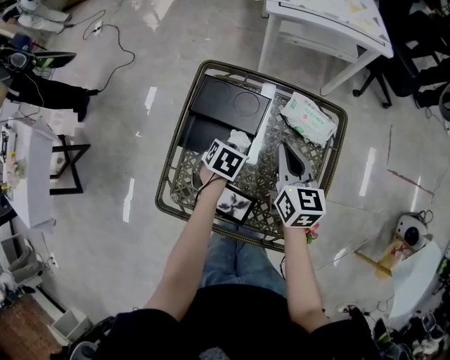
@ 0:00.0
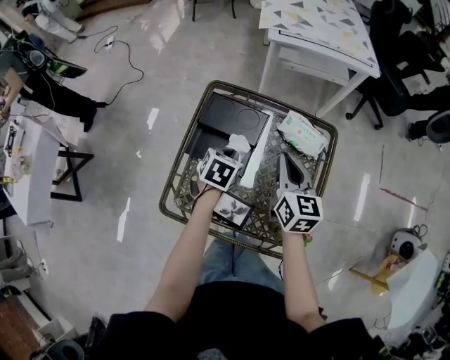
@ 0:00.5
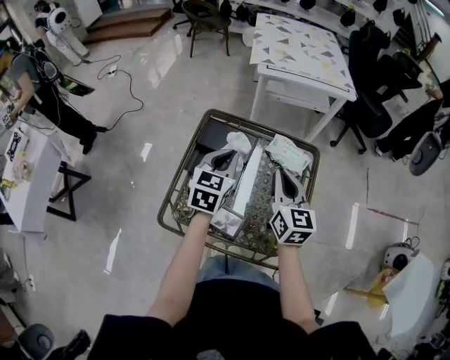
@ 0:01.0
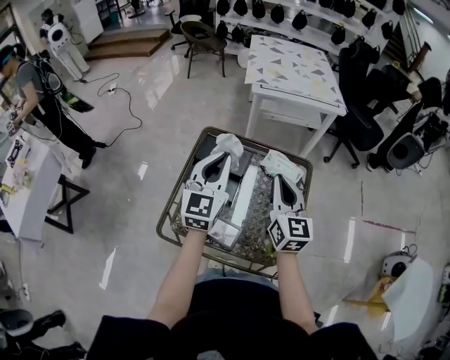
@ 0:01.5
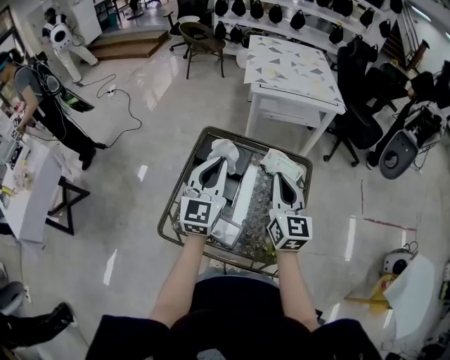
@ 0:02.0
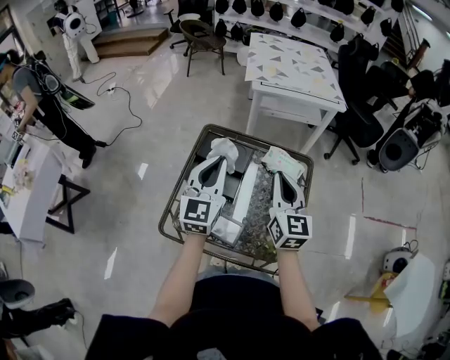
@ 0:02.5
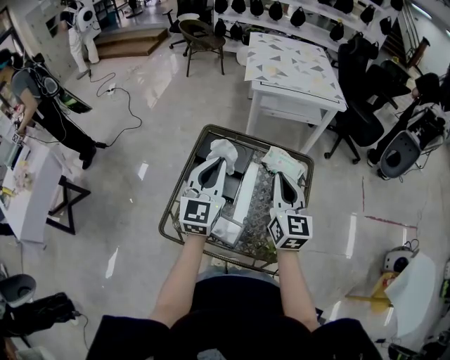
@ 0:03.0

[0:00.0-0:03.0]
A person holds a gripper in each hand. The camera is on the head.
0:00.0 to 0:01.5: The right gripper moves upward and backward, about 20 cm, and rotates about 20 degrees. Meanwhile the left gripper moves upward, approximately 35 cm, and tips its fingers upward by some 70 degrees.
0:01.5 to 0:03.0: The grippers stay close to where they were, moving slightly.

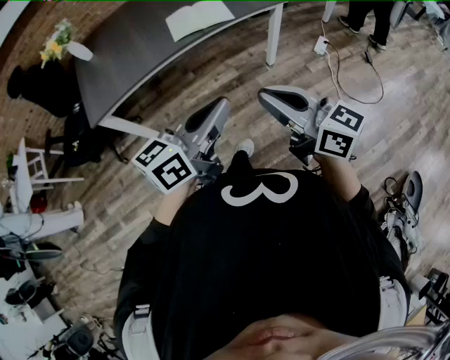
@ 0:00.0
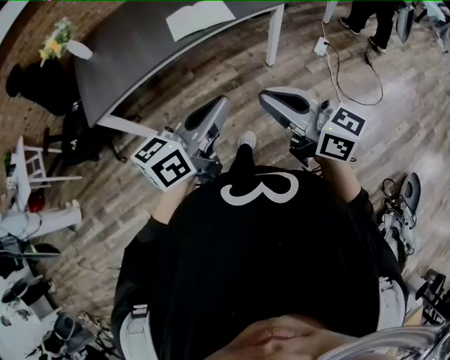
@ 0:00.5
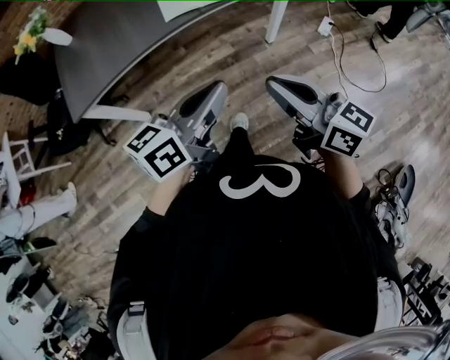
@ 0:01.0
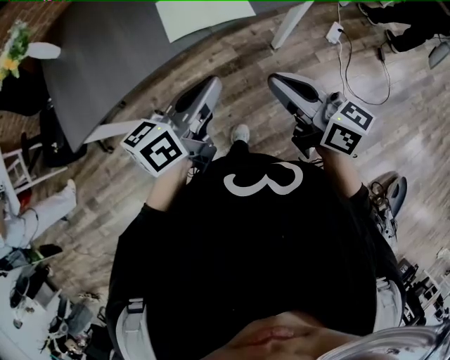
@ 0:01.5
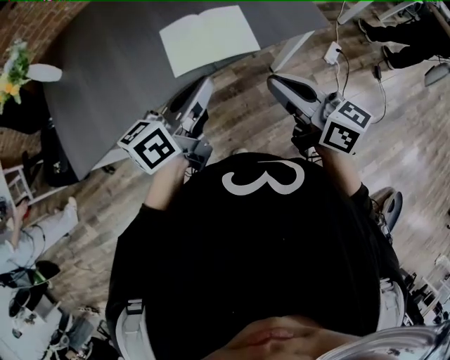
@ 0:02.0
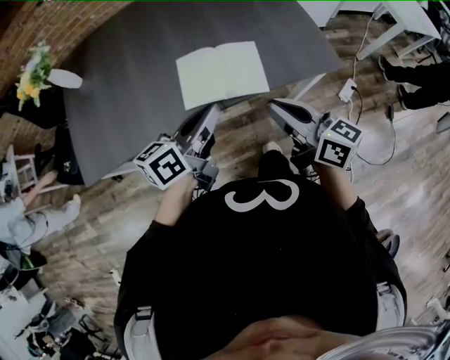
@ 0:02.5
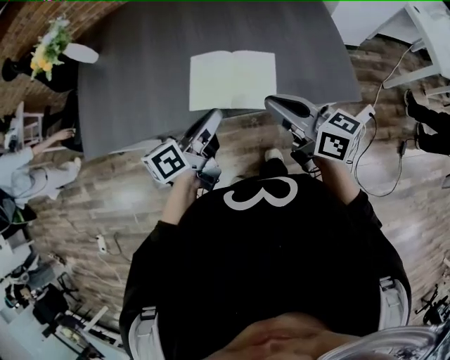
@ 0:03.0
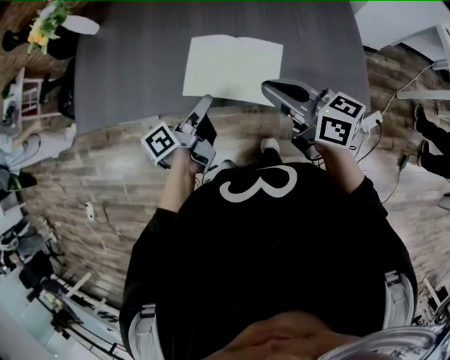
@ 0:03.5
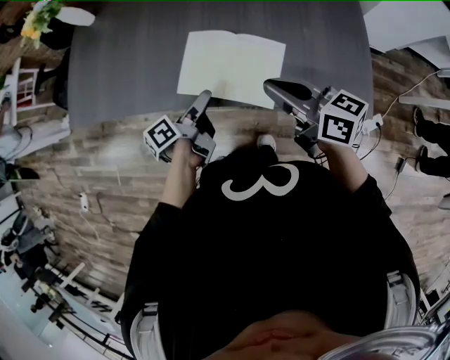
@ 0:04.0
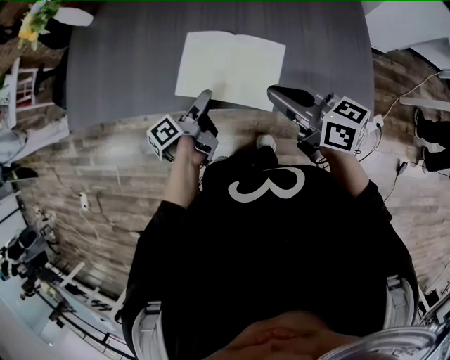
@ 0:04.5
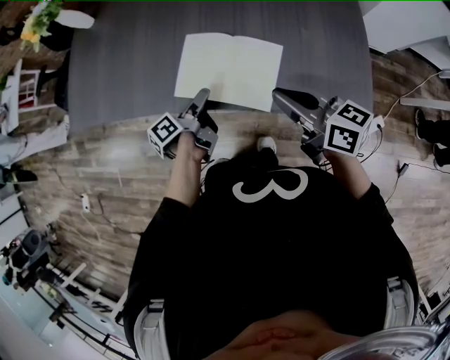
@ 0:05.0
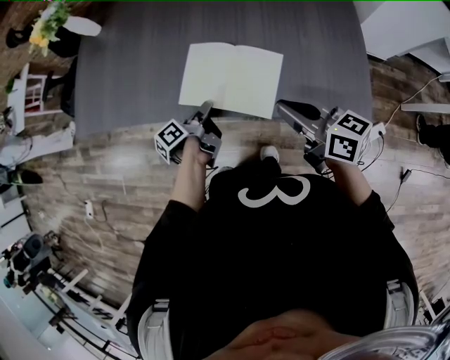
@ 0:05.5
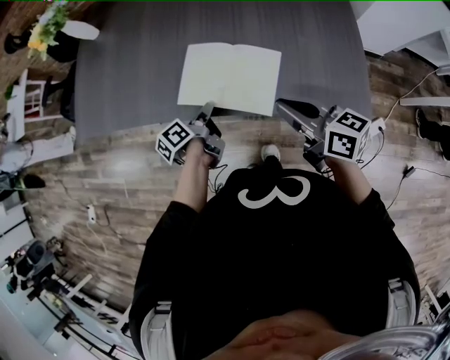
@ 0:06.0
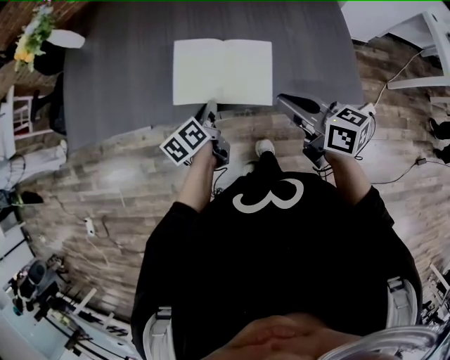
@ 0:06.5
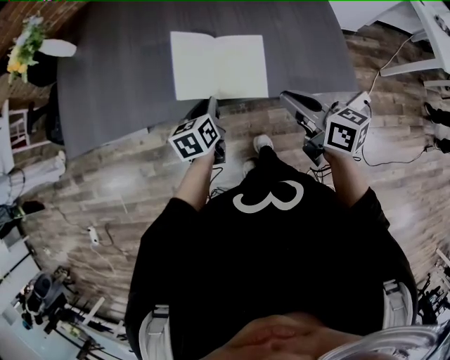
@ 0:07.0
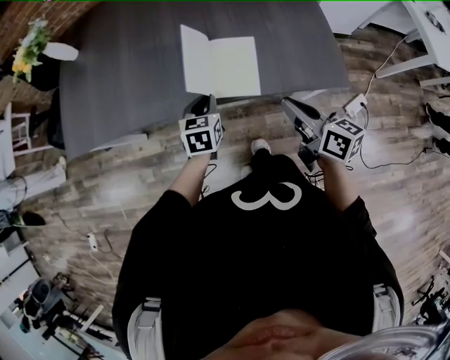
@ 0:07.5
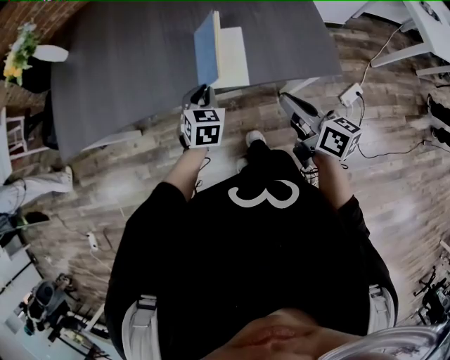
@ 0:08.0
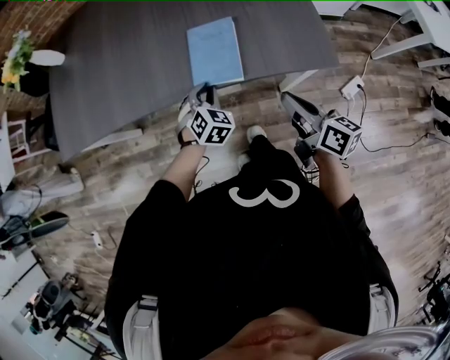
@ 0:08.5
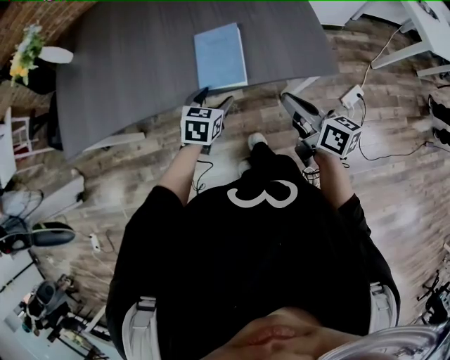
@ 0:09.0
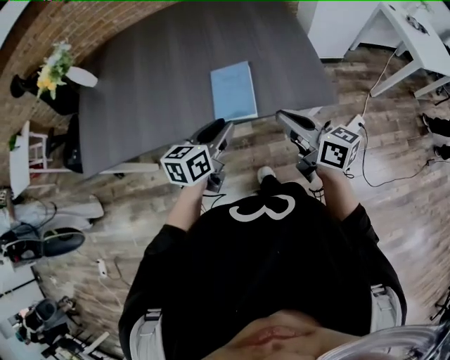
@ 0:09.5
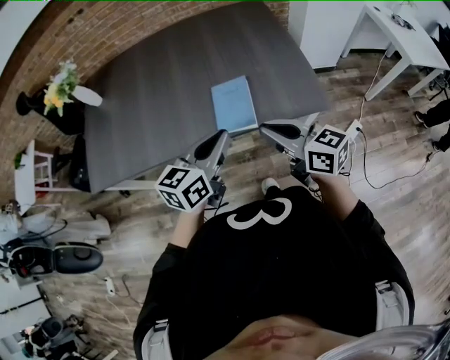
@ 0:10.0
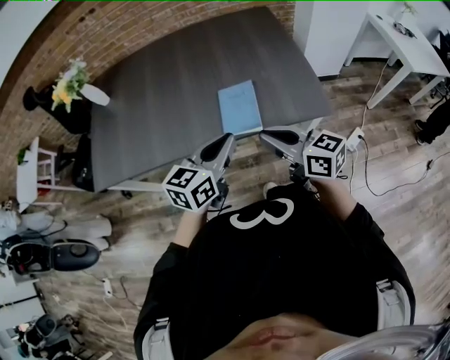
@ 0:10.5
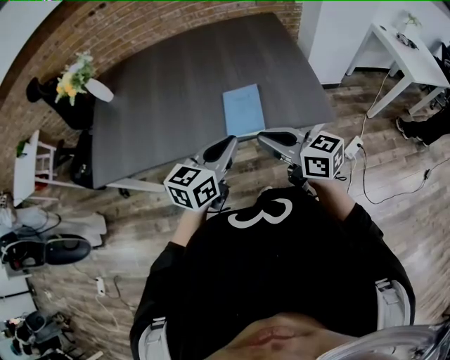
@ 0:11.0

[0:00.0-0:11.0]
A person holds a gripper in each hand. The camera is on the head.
0:00.0 to 0:02.0: The grippers both shift forward by approximately 35 cm.
0:02.0 to 0:03.5: The left gripper shifts by about 15 cm, changes its angle by roughly 50 degrees, and opens, while the right gripper ends up approximately 20 cm from where it was, and rotates approximately 30 degrees.
0:03.5 to 0:05.5: The left gripper is displaced downward by approximately 10 cm, turns by some 20 degrees, and opens and closes again; the right gripper shifts by roughly 5 cm.
0:05.5 to 0:07.5: The right gripper shifts approximately 10 cm backward, and turns by roughly 20 degrees; the left gripper heads to the right, covering approximately 5 cm, and rolls clockwise, seen from behind, by roughly 80 degrees.
0:07.5 to 0:09.0: The left gripper shifts roughly 5 cm to the right, and opens its fingers.
0:09.0 to 0:11.0: The right gripper goes approximately 15 cm to the left and upward, and changes its angle by roughly 30 degrees; the left gripper heads upward, covering approximately 20 cm, points its fingers roughly 30 degrees further upward, and closes up.

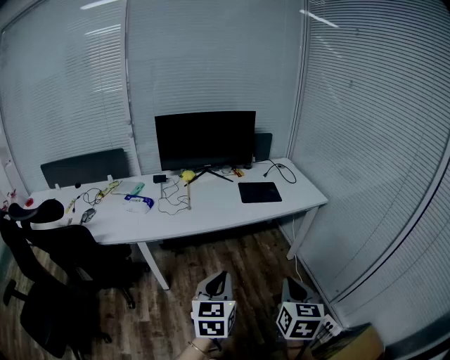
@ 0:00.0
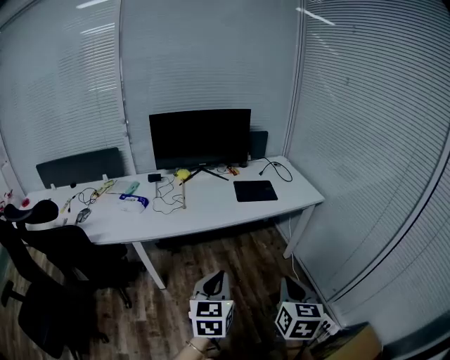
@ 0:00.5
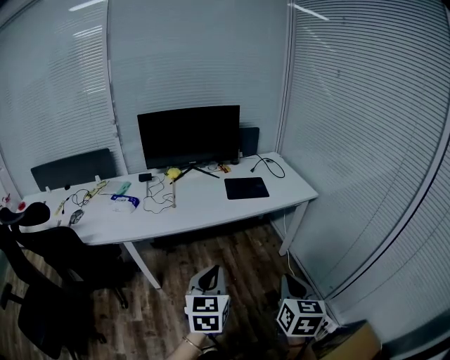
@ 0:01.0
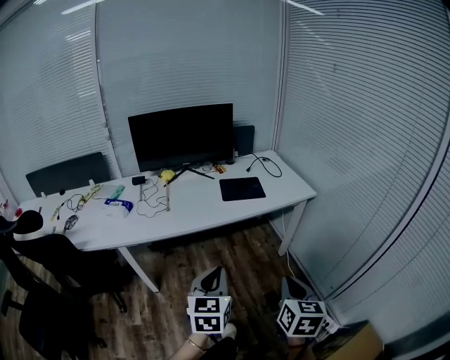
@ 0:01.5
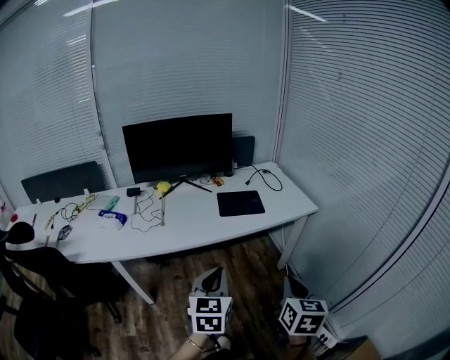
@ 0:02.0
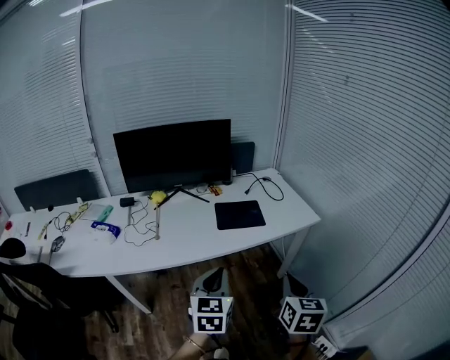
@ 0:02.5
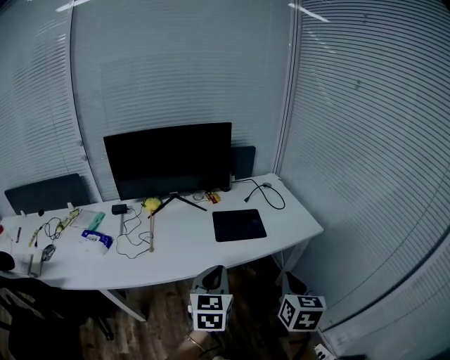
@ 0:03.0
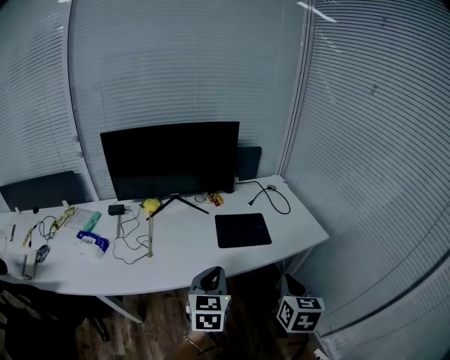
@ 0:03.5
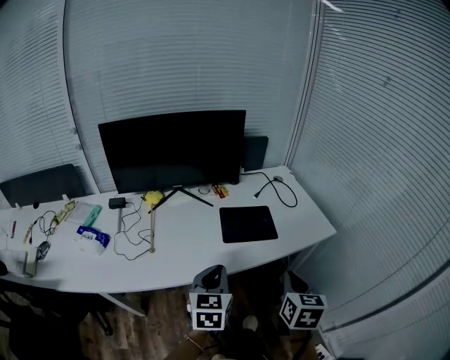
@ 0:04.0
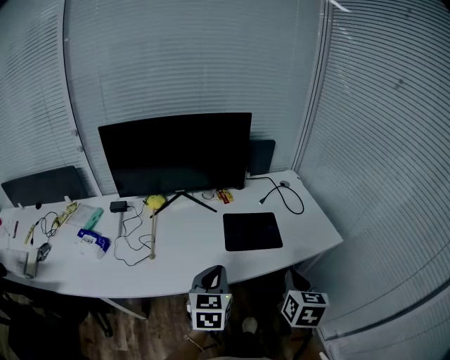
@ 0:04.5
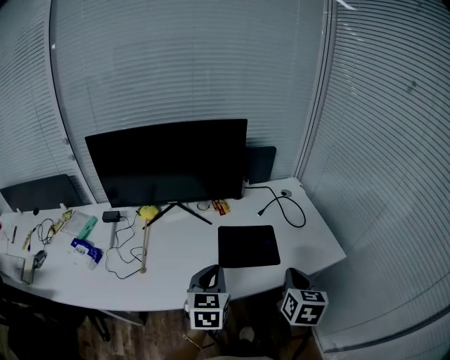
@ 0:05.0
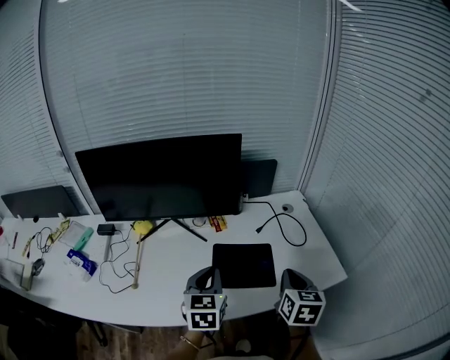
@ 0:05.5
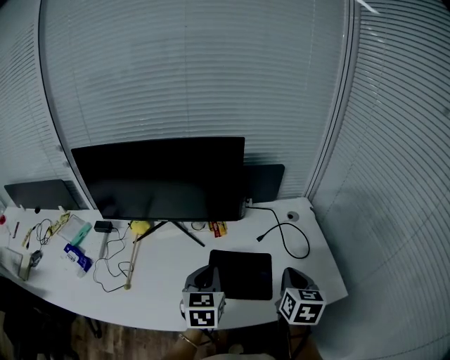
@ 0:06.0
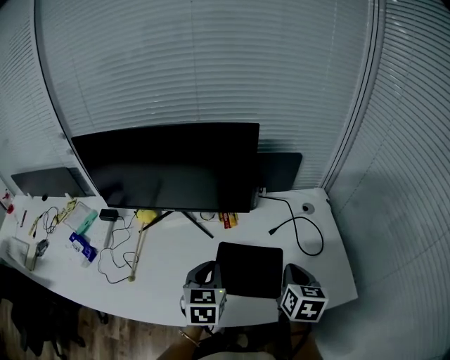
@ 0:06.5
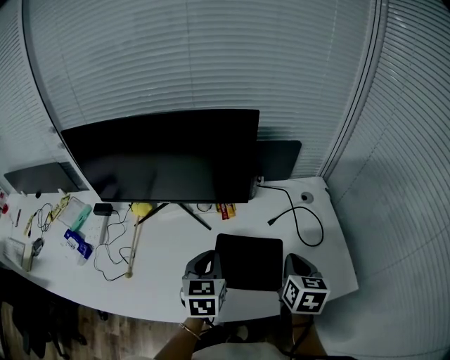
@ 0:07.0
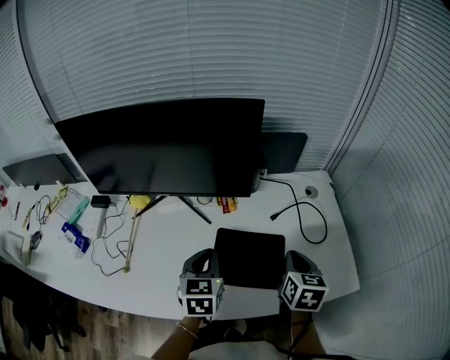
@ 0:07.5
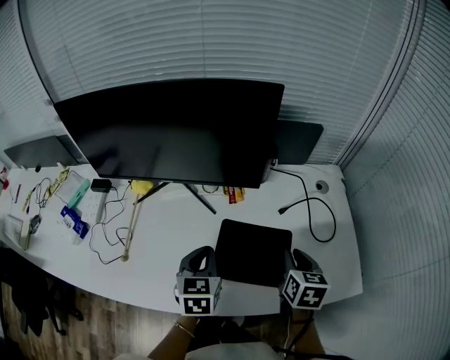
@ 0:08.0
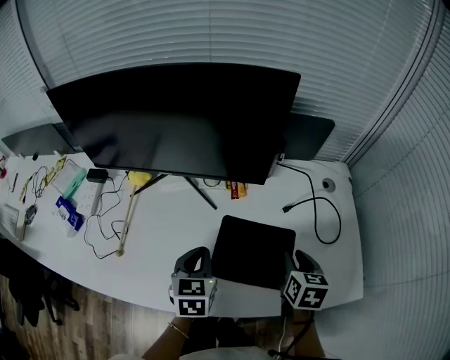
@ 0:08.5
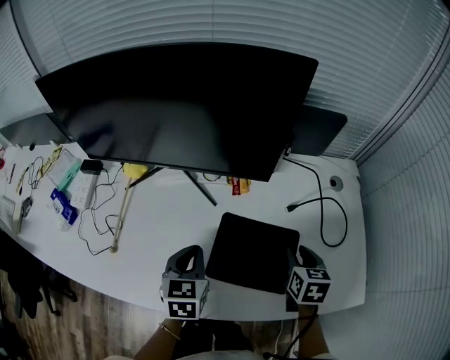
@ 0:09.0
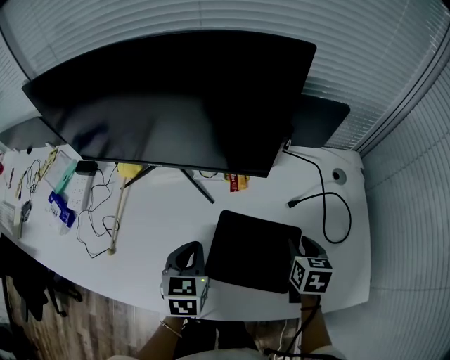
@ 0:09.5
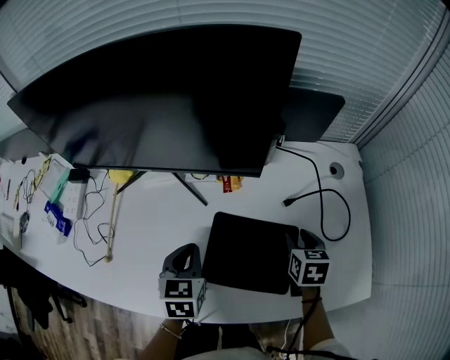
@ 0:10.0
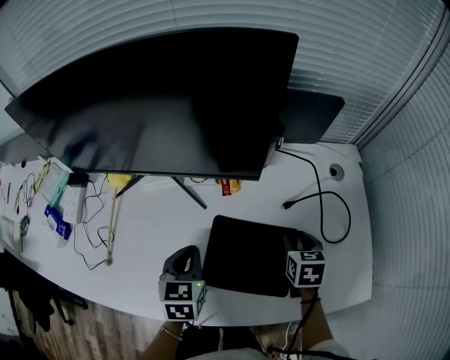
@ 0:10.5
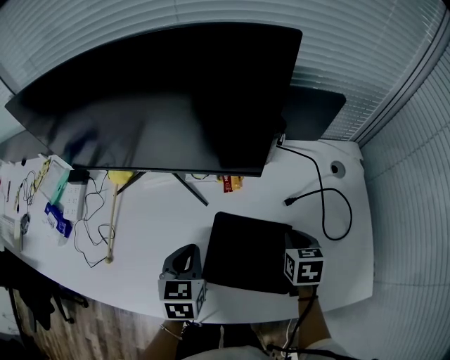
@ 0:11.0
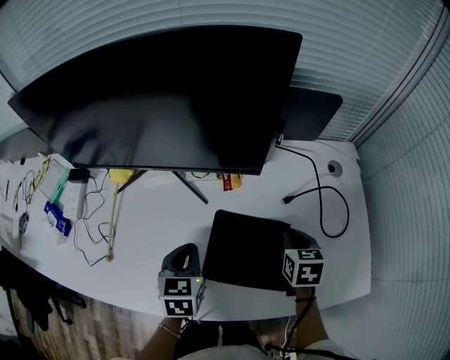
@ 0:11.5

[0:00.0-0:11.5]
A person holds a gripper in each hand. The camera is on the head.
0:00.0 to 0:02.0: The grippers both shift forward and to the right by some 15 cm.
0:02.0 to 0:04.0: Both grippers move forward, roughly 20 cm.
0:04.0 to 0:06.0: Both grippers move forward, approximately 25 cm.
0:06.0 to 0:07.5: The grippers both shift downward by approximately 5 cm.
0:07.5 to 0:09.5: The right gripper heads downward and forward, covering approximately 15 cm, and opens up; the left gripper moves downward, about 10 cm.
0:09.5 to 0:11.5: The right gripper closes up.

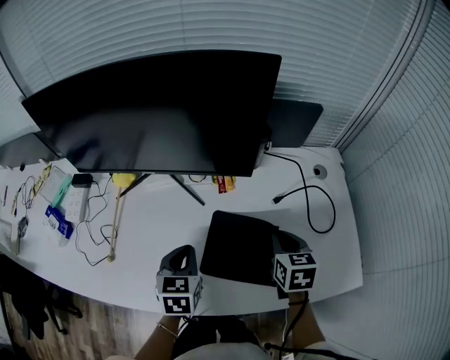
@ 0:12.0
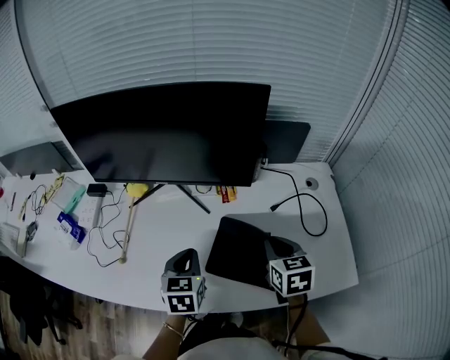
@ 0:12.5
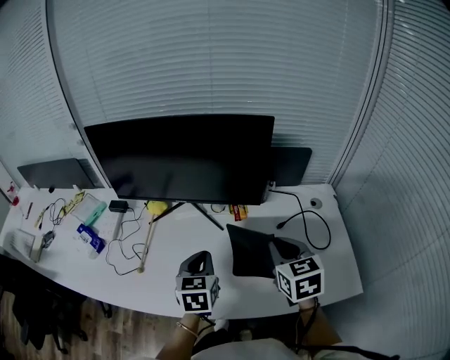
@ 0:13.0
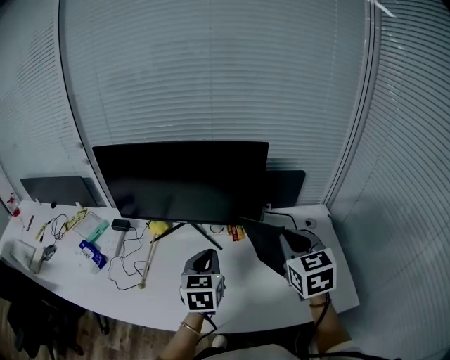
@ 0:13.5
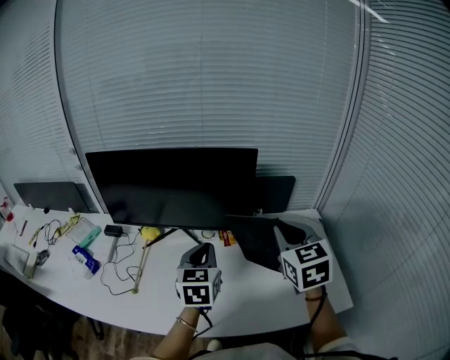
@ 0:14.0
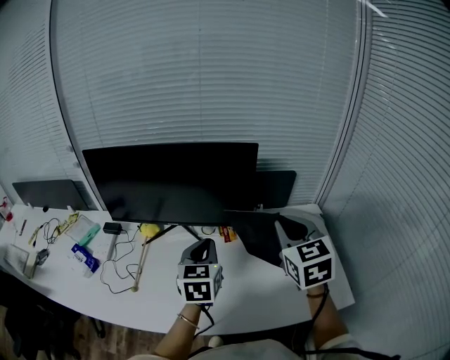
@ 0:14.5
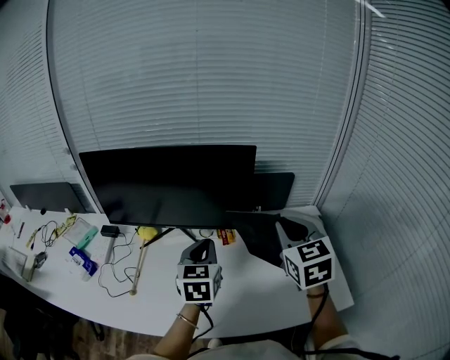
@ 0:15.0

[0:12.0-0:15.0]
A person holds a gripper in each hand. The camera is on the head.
0:12.0 to 0:13.5: The left gripper travels upward by some 15 cm, and swivels about 20 degrees. The right gripper is displaced upward by about 25 cm, and rotates some 30 degrees.
0:13.5 to 0:15.0: The left gripper changes place by about 5 cm.
